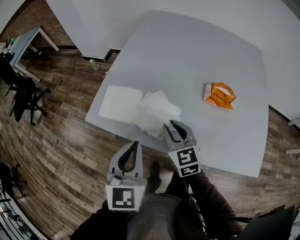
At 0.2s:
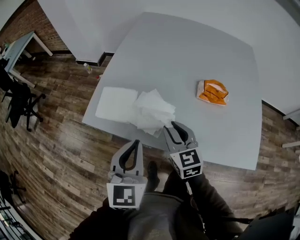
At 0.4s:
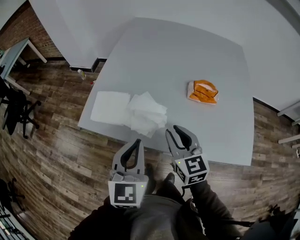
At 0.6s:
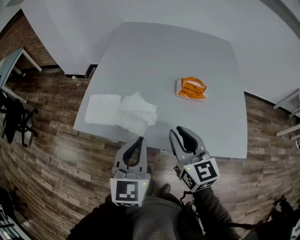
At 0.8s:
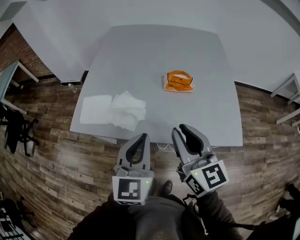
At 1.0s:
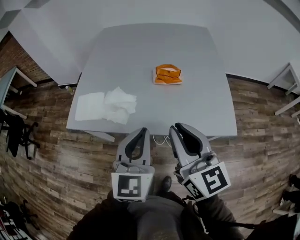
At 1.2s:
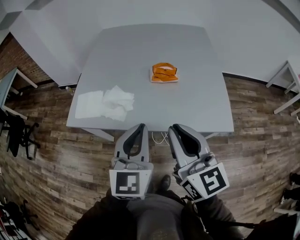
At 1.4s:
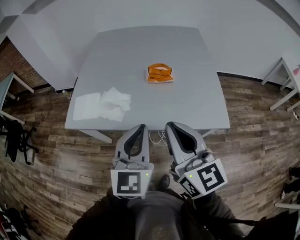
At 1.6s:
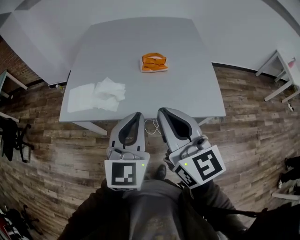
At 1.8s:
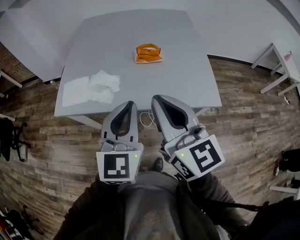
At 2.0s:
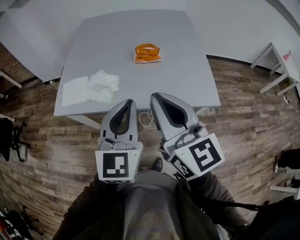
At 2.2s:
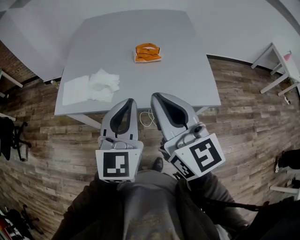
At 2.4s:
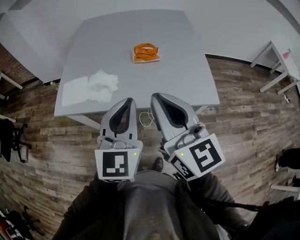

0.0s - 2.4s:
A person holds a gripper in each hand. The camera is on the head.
0.0s - 1.2s: The left gripper shifts some 25 cm to the right, backward and upward, and changes its angle by approximately 20 degrees; the right gripper shifts roughly 35 cm backward, upward and to the right, and swivels approximately 30 degrees.
1.2s - 2.4s: The right gripper moves about 5 cm.

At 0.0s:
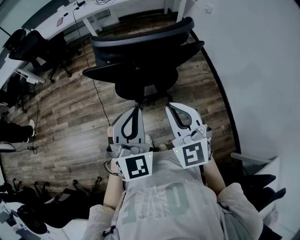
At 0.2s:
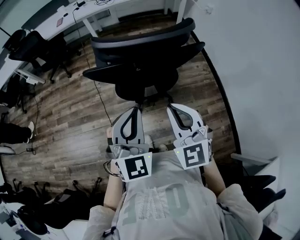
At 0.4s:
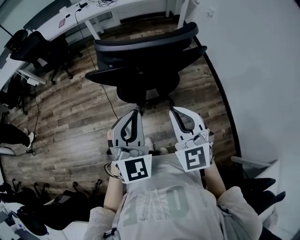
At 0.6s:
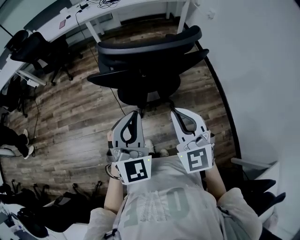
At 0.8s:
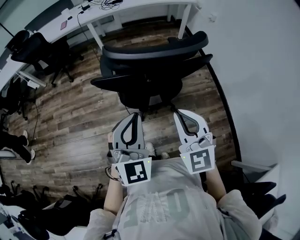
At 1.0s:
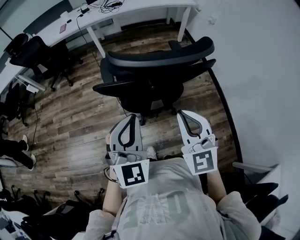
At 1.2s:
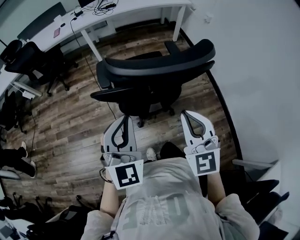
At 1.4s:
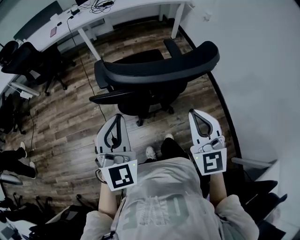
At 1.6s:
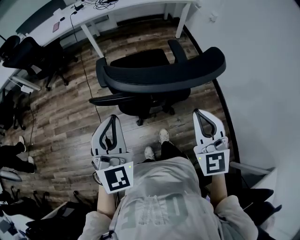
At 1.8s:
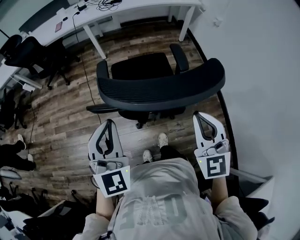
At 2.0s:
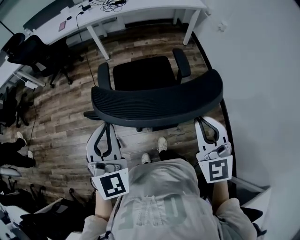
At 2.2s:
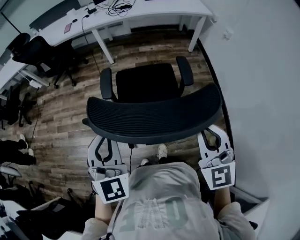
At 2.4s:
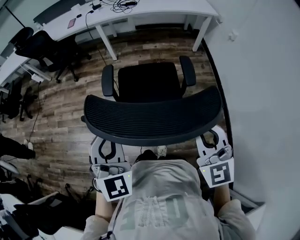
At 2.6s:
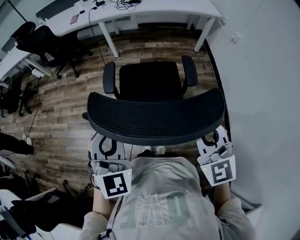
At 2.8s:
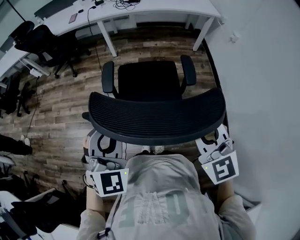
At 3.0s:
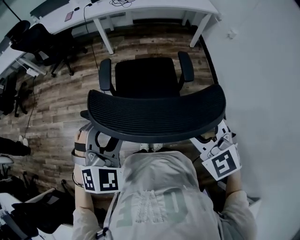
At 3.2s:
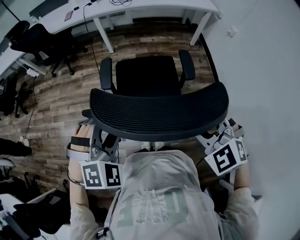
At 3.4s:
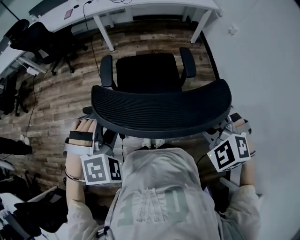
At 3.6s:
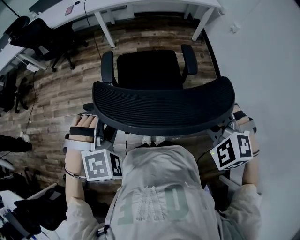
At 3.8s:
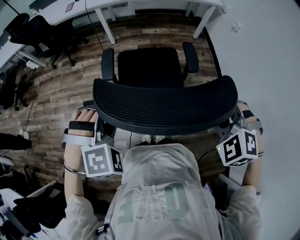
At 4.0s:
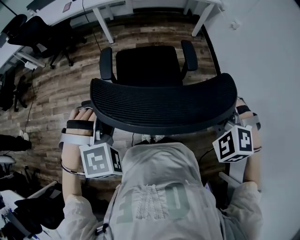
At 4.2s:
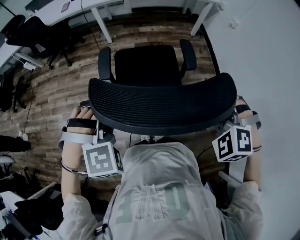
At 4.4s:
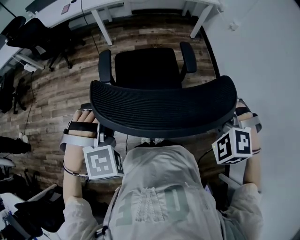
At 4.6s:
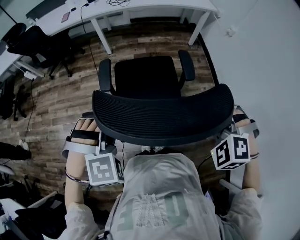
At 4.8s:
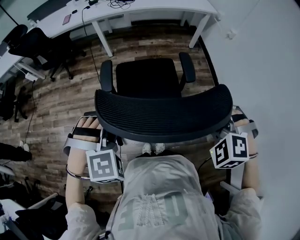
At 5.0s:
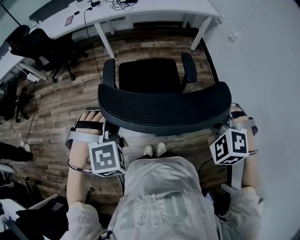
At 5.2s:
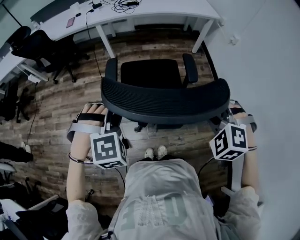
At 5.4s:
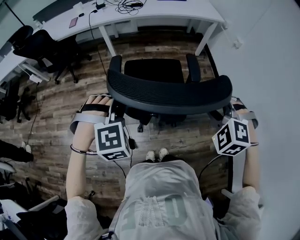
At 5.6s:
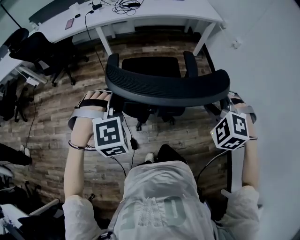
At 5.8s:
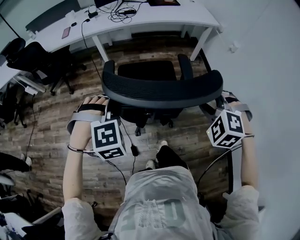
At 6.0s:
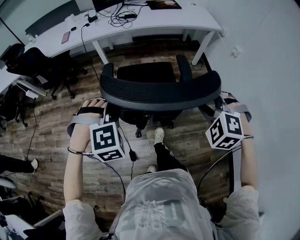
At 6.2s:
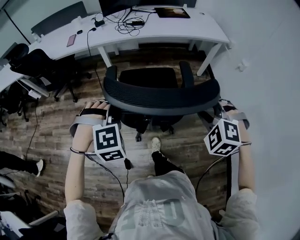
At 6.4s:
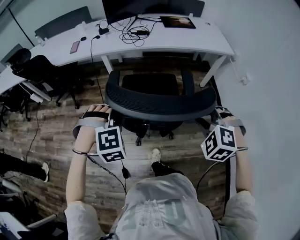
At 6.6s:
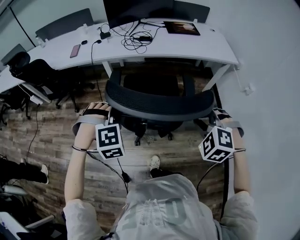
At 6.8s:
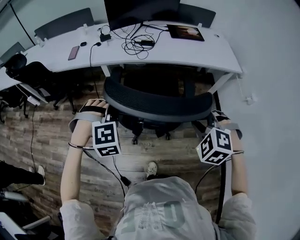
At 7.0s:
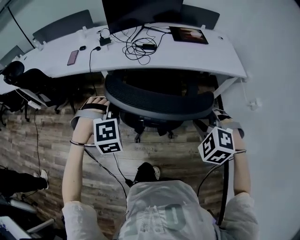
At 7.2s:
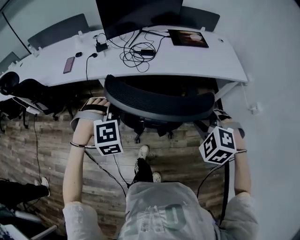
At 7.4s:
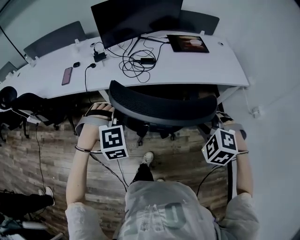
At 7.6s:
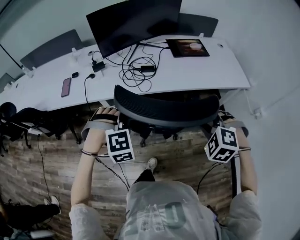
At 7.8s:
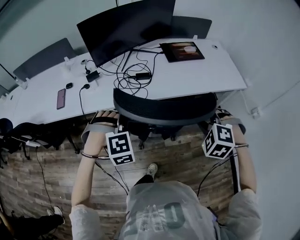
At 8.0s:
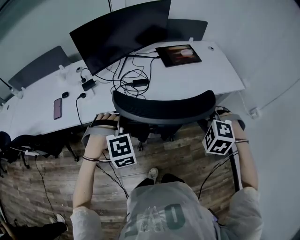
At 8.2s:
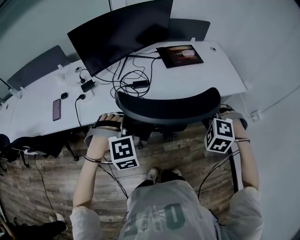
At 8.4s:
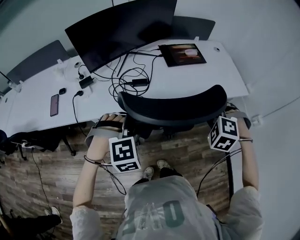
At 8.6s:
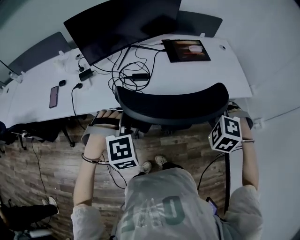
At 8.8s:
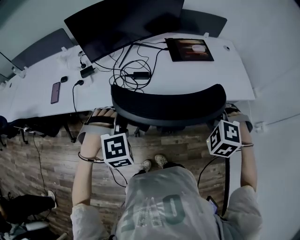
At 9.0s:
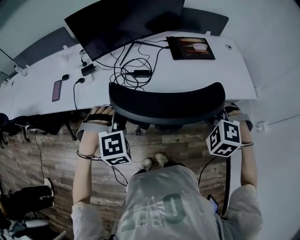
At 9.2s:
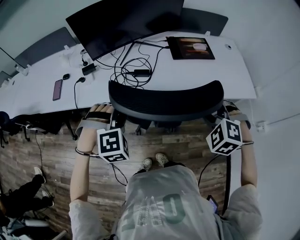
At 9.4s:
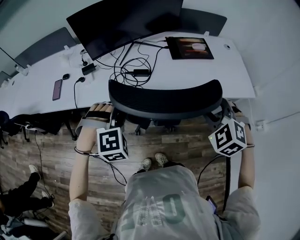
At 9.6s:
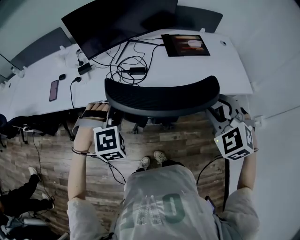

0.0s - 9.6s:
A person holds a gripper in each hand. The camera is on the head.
0.0s - 1.6s: The right gripper is displaced forward by approximately 10 cm; the left gripper travels forward and to the left by about 15 cm.
1.6s - 3.2s: The right gripper is displaced forward by roughly 5 cm, tilts its fingers roughly 30 degrees downward, and opens; the left gripper ends up some 10 cm from where it was, angles its fingers downward, by approximately 30 degrees, and opens its fingers.
3.2s - 4.8s: The right gripper shifts roughly 5 cm to the right, and swivels approximately 30 degrees. The left gripper changes place by approximately 5 cm, and changes its angle by some 20 degrees.
4.8s - 6.4s: The two grippers go roughly 35 cm forward.
6.4s - 8.0s: Both grippers are carried forward, some 50 cm.
8.0s - 9.6s: The right gripper goes some 10 cm upward and to the right, and changes its angle by roughly 30 degrees. Meanwhile the left gripper shifts about 5 cm to the right.

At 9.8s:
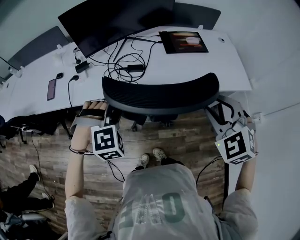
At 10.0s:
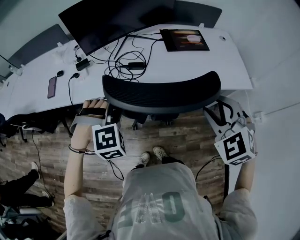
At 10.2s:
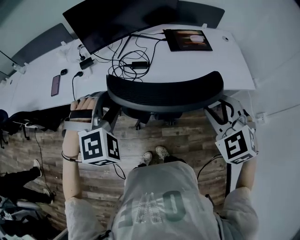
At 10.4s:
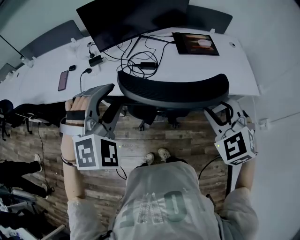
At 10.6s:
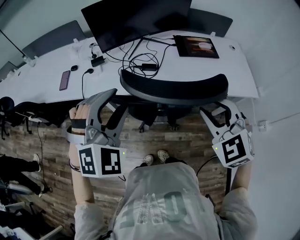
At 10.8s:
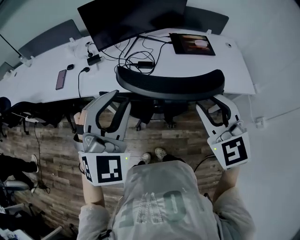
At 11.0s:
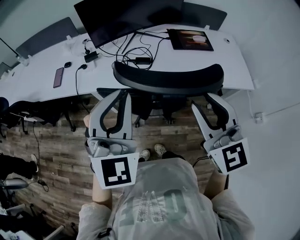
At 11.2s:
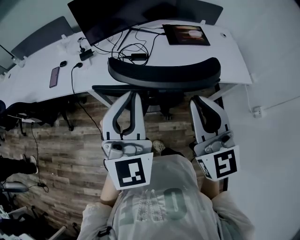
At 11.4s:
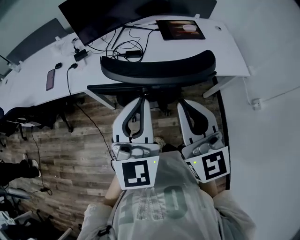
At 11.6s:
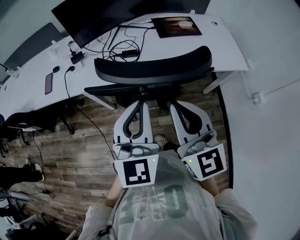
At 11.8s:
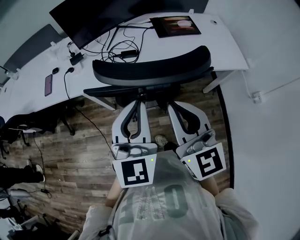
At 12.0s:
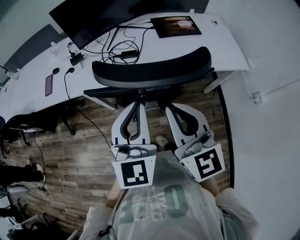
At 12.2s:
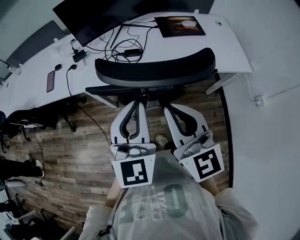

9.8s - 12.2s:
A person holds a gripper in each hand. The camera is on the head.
9.8s - 11.0s: The left gripper goes approximately 20 cm upward and backward, tips its fingers upward by some 50 degrees, and closes its fingers, while the right gripper moves to the left and upward, about 10 cm, and tilts its fingers roughly 30 degrees upward.
11.0s - 12.2s: The left gripper goes about 5 cm downward, and turns by roughly 20 degrees. The right gripper shifts by about 5 cm, and closes.

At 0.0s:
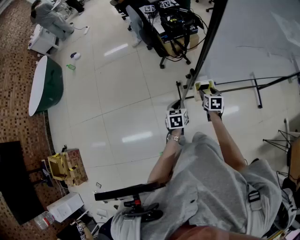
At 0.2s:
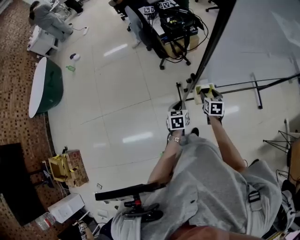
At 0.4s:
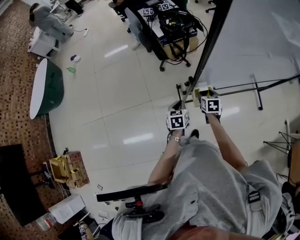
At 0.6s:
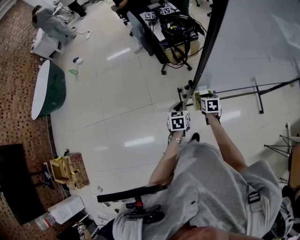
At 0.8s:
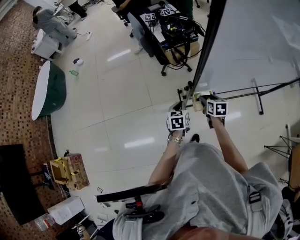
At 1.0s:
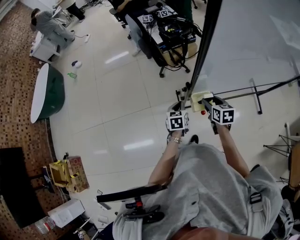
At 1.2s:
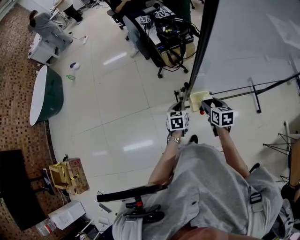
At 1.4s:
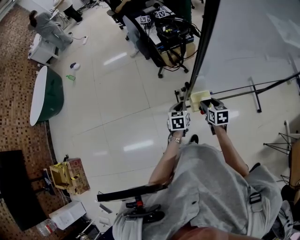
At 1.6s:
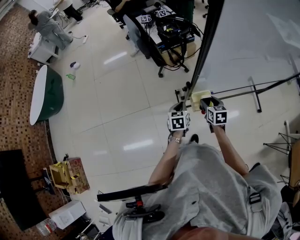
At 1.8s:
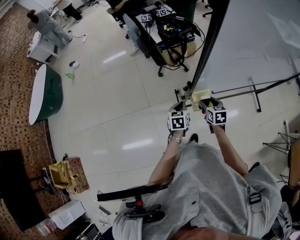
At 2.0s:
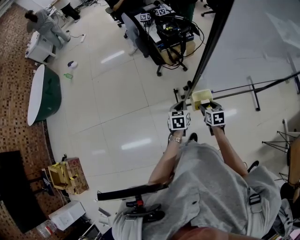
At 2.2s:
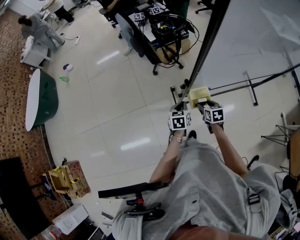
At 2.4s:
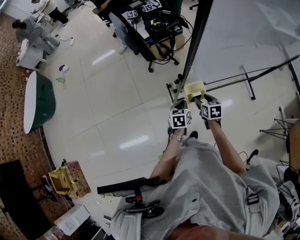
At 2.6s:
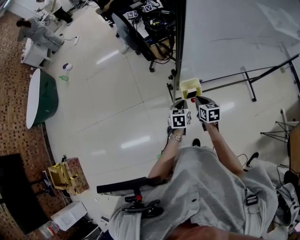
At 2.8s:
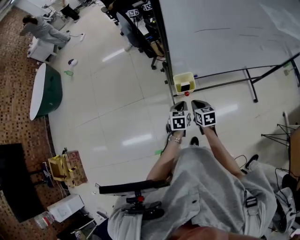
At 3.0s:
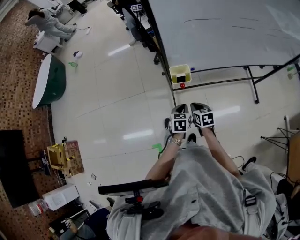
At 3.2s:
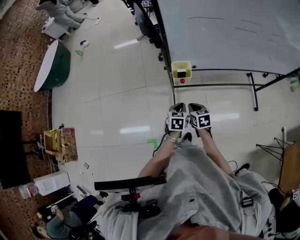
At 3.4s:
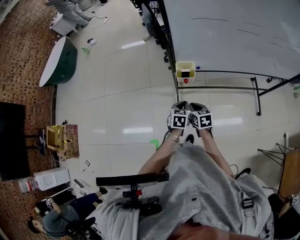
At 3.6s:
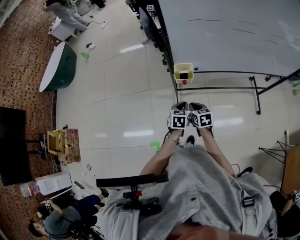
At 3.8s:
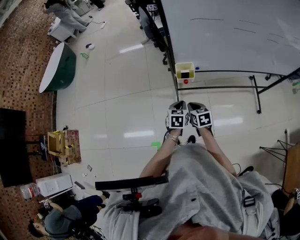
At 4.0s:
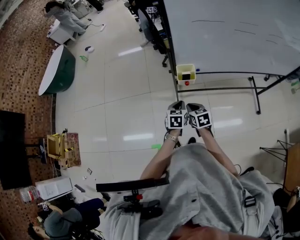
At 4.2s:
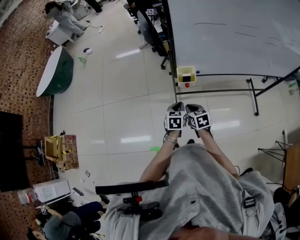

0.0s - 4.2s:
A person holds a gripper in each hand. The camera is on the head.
0.0s - 1.4s: The right gripper travels upward by approximately 5 cm. Meanwhile the left gripper moves forward, roughly 5 cm.
1.4s - 2.8s: The left gripper shifts some 15 cm backward and to the right, while the right gripper travels backward by roughly 10 cm, and closes.
2.8s - 4.2s: The left gripper goes about 10 cm backward. The right gripper moves backward and to the left, roughly 10 cm.

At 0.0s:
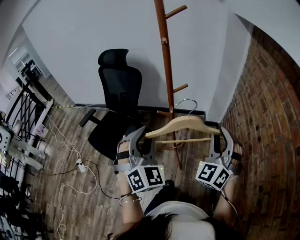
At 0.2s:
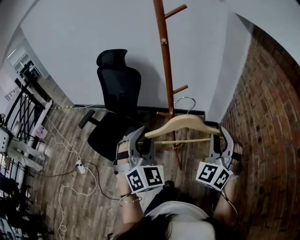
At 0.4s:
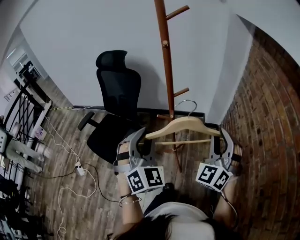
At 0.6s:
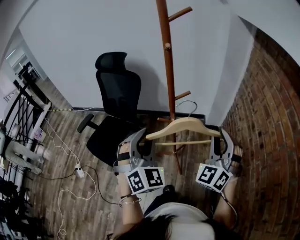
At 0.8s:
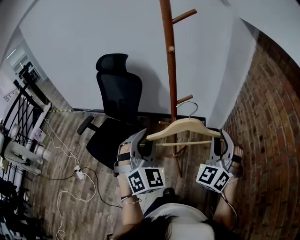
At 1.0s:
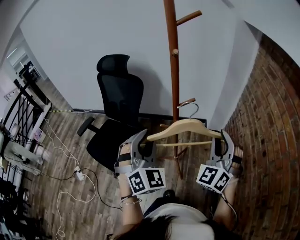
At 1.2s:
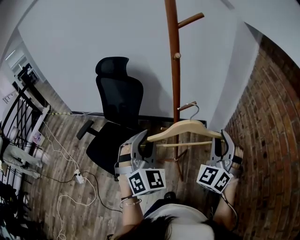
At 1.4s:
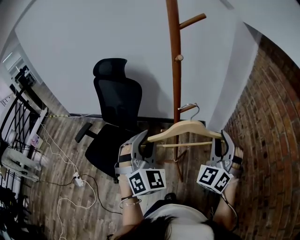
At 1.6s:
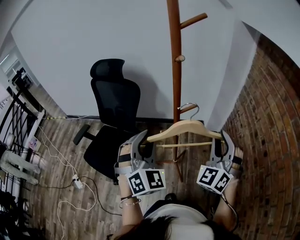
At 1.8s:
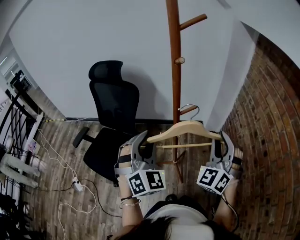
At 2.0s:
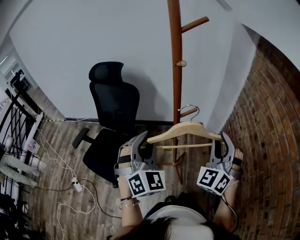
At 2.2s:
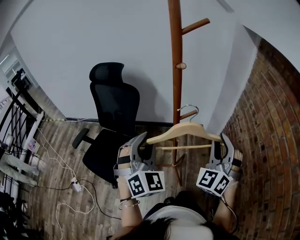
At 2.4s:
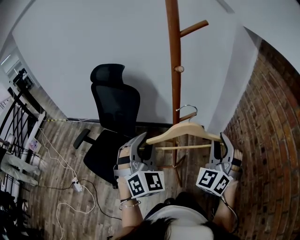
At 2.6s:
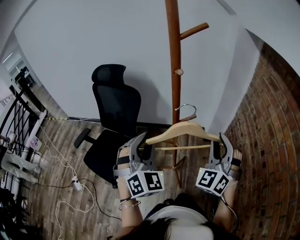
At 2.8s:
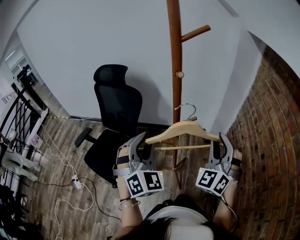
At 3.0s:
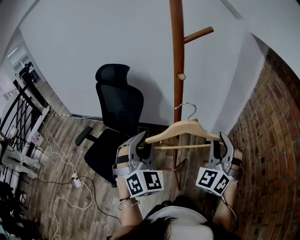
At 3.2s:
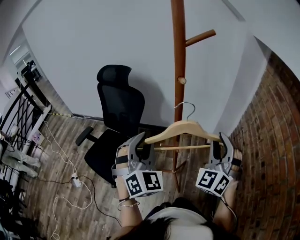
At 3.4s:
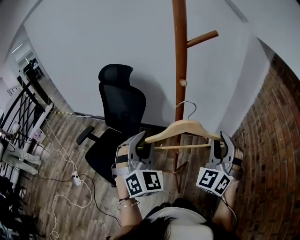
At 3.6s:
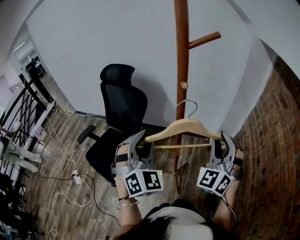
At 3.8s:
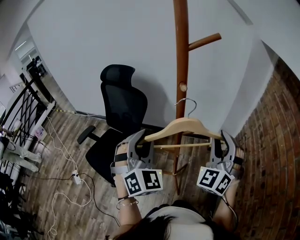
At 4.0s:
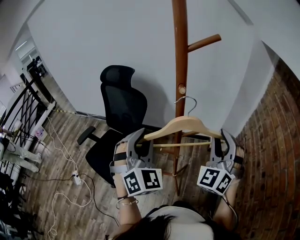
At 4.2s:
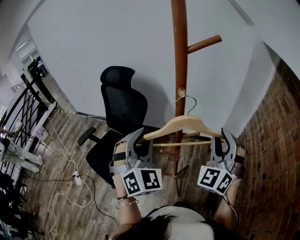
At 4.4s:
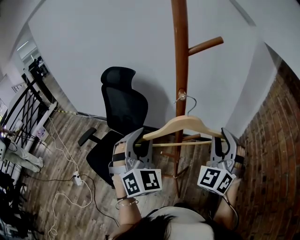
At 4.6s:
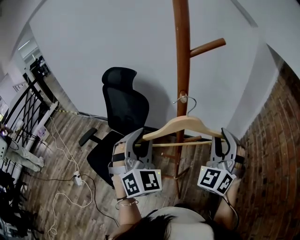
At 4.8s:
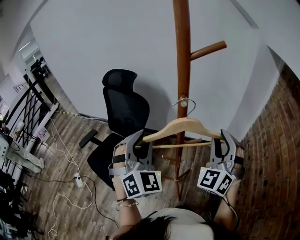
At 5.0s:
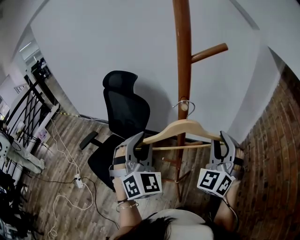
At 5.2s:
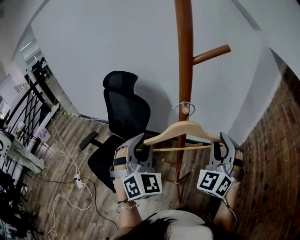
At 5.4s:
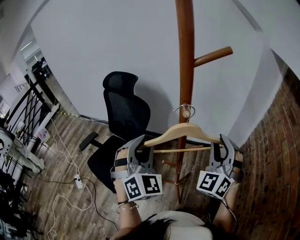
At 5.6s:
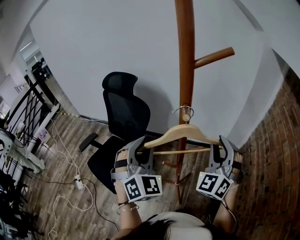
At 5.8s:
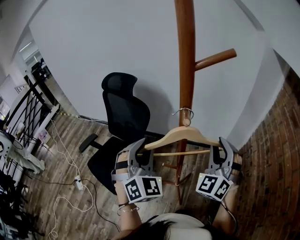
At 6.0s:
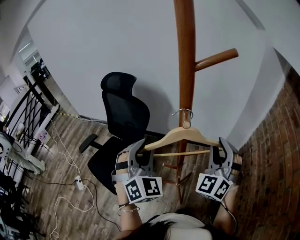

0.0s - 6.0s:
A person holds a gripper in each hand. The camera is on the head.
0.0s - 1.6s: The right gripper moves forward, approximately 10 cm. The left gripper is displaced forward and to the left by roughly 10 cm.
1.6s - 3.0s: The right gripper changes place by about 5 cm.
3.0s - 4.4s: Both grippers move forward, about 5 cm.
4.4s - 6.0s: The left gripper ends up about 5 cm from where it was; the right gripper shifts roughly 5 cm forward.
